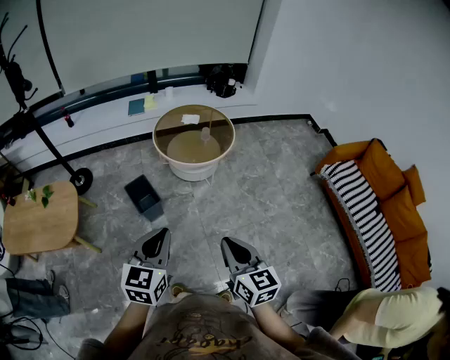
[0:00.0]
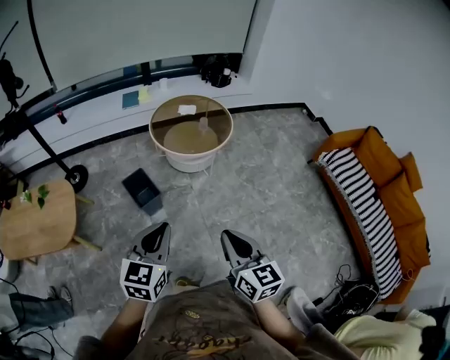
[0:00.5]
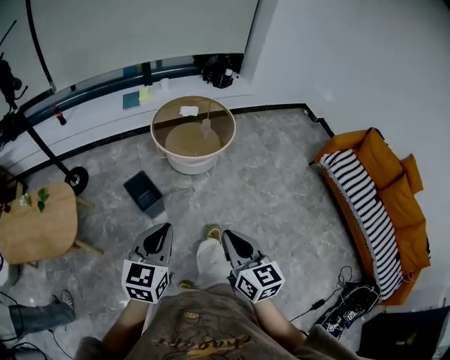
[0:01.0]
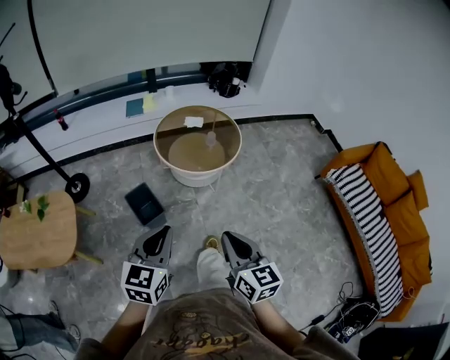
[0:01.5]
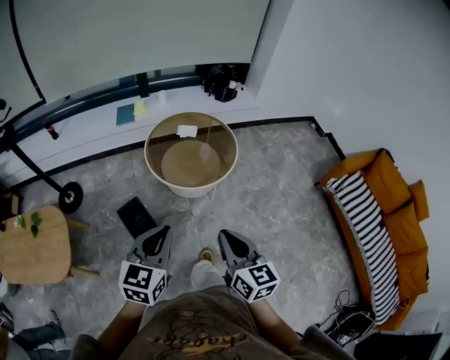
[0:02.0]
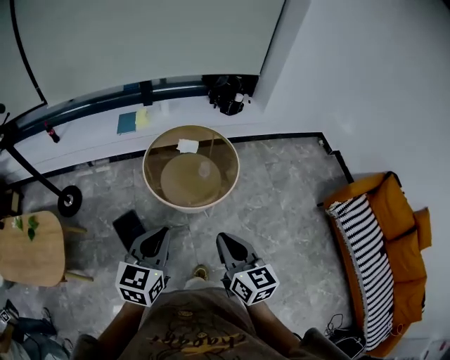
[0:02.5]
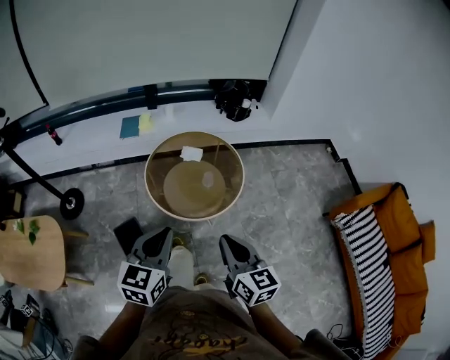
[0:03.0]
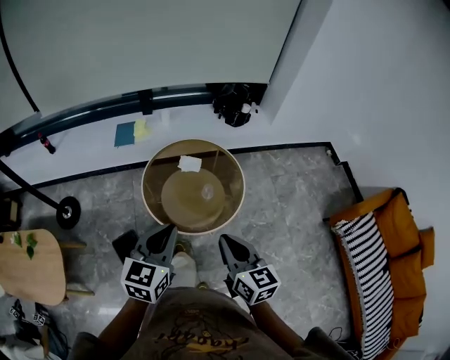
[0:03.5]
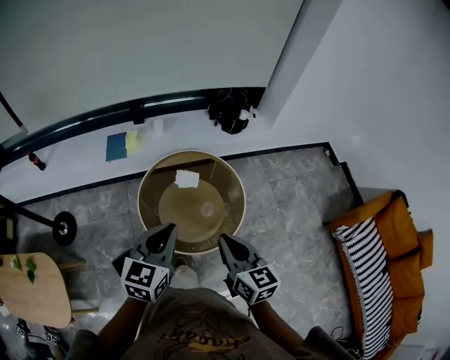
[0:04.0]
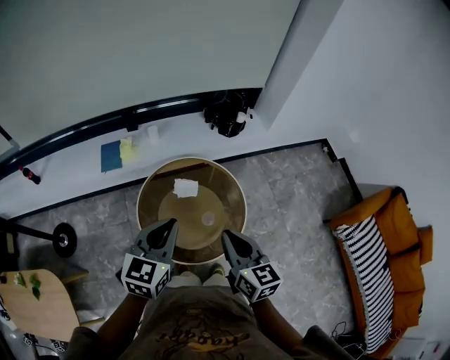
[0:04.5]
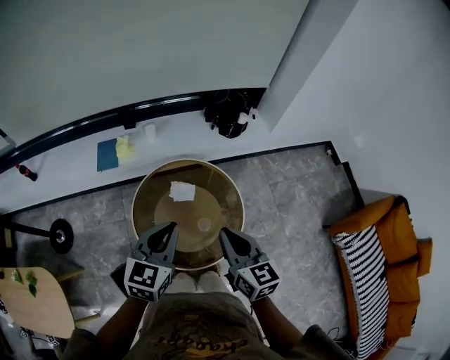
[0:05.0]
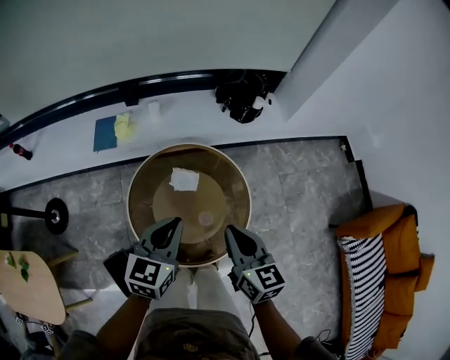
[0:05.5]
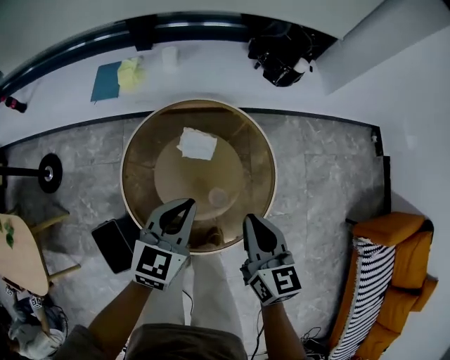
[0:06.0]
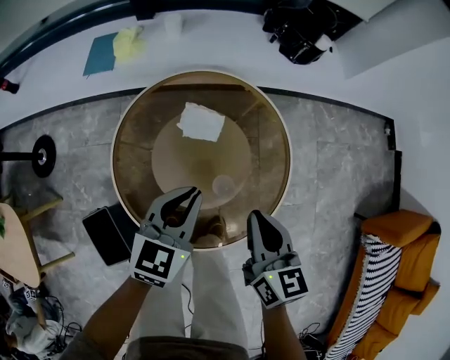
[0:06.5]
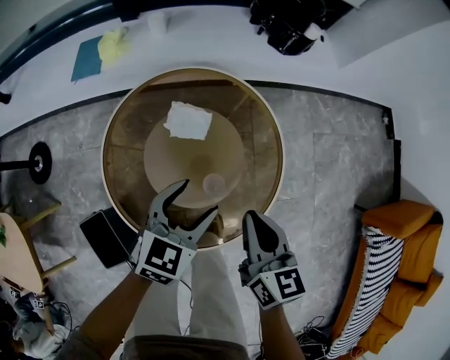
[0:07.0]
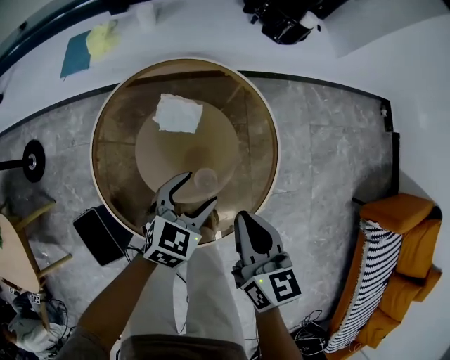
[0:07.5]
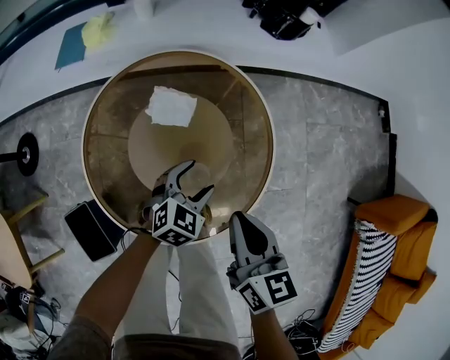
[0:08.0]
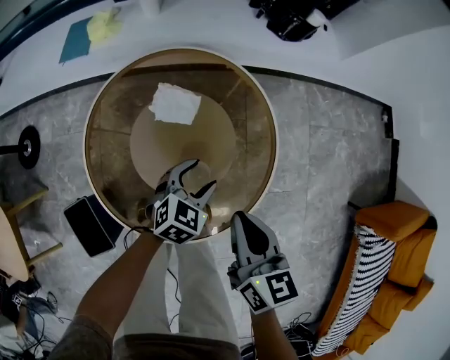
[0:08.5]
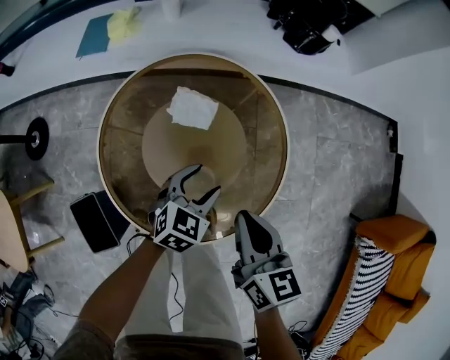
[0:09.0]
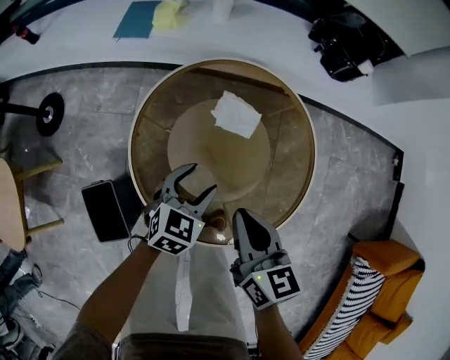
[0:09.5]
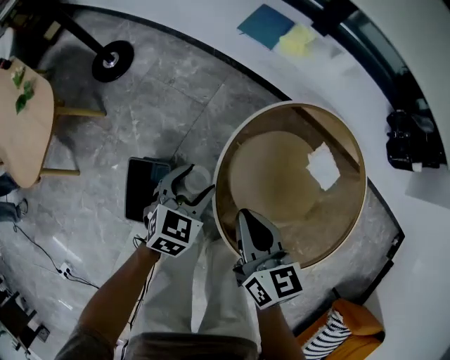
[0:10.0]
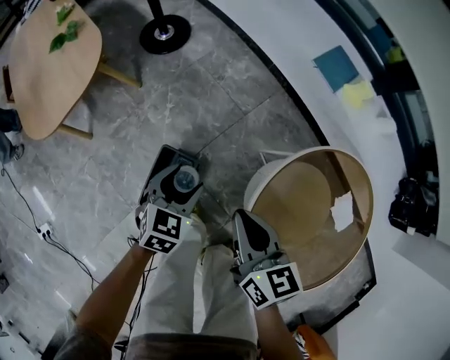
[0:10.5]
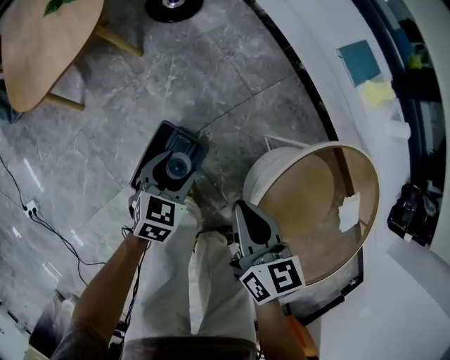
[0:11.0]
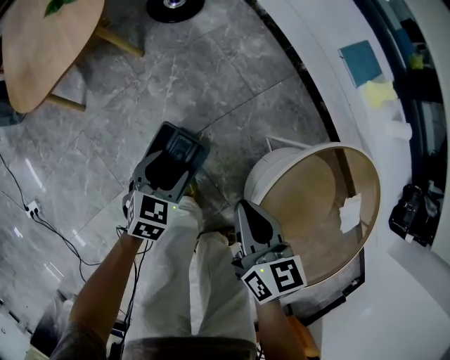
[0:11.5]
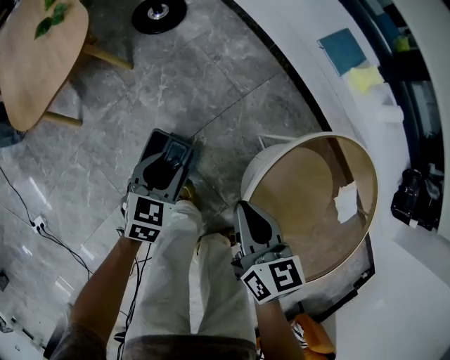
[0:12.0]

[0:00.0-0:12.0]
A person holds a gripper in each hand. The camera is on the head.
0:00.0 to 0:02.0: The grippers both shift forward by roughly 25 cm.
0:02.0 to 0:04.0: The grippers both shift forward by about 40 cm.
0:04.0 to 0:06.0: The right gripper moves forward and downward, some 25 cm. The left gripper is displaced downward and forward by roughly 30 cm.
0:06.0 to 0:08.0: The right gripper is displaced downward by some 10 cm. Meanwhile the left gripper moves downward and to the right, roughly 25 cm, swivels about 30 degrees, and opens up.
0:08.0 to 0:10.0: The left gripper shifts by approximately 40 cm, and changes its angle by some 50 degrees. The right gripper ends up some 35 cm from where it was, and rotates some 40 degrees.
0:10.0 to 0:12.0: The right gripper heads to the left and downward, covering approximately 15 cm. The left gripper goes some 20 cm to the left, and turns by approximately 30 degrees.

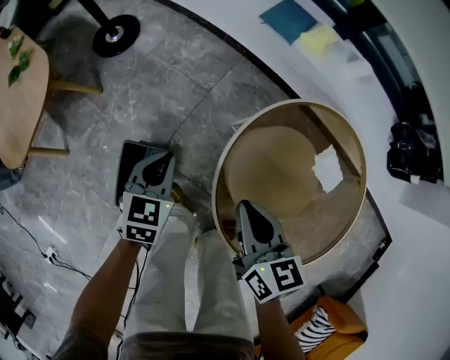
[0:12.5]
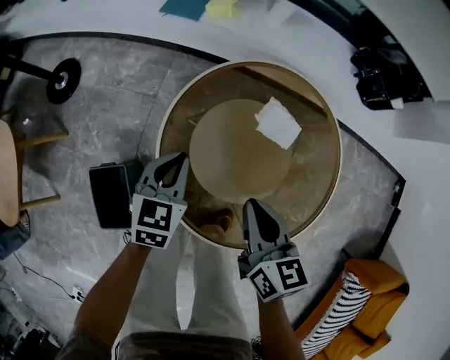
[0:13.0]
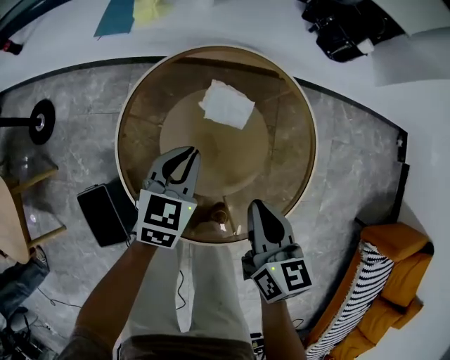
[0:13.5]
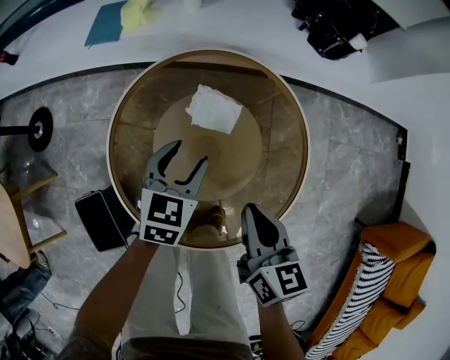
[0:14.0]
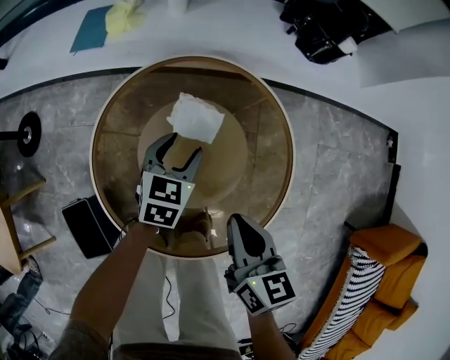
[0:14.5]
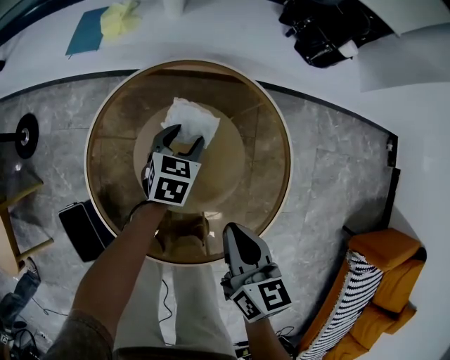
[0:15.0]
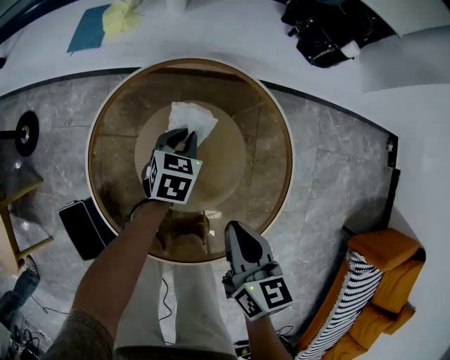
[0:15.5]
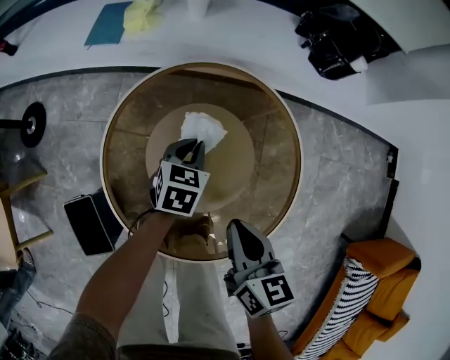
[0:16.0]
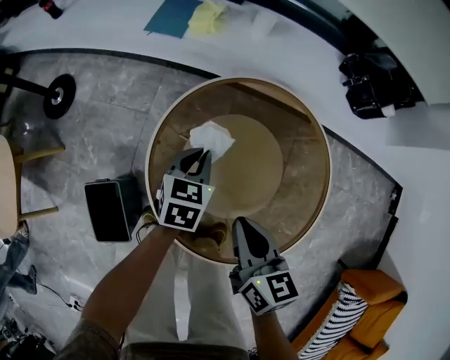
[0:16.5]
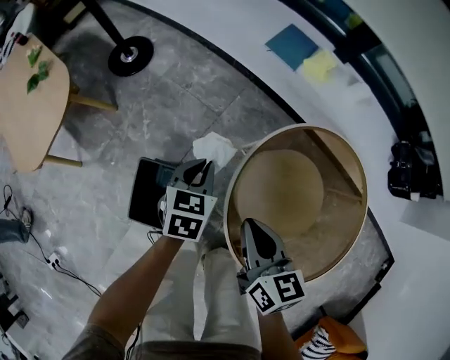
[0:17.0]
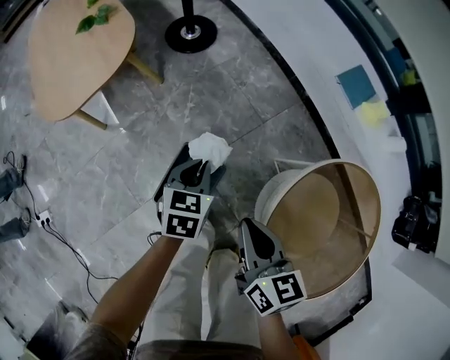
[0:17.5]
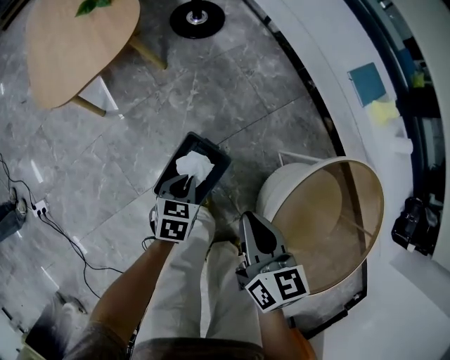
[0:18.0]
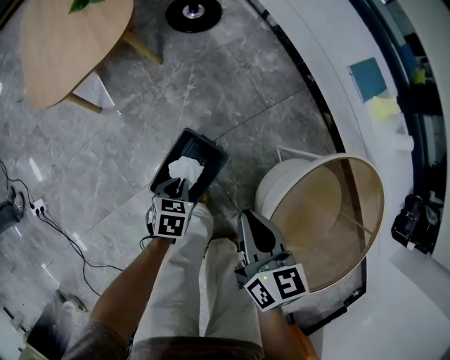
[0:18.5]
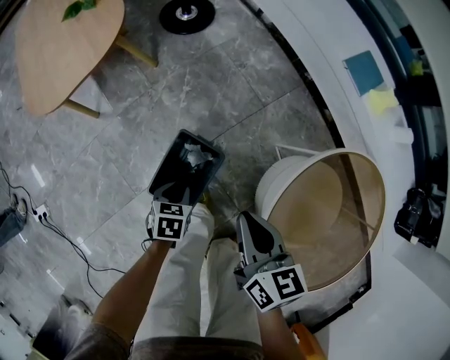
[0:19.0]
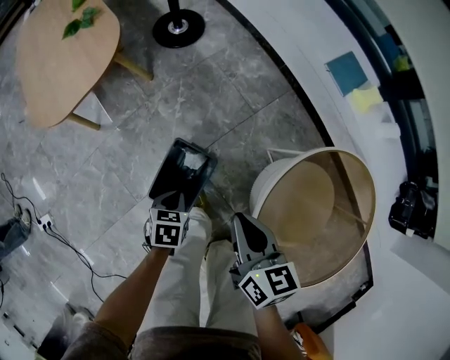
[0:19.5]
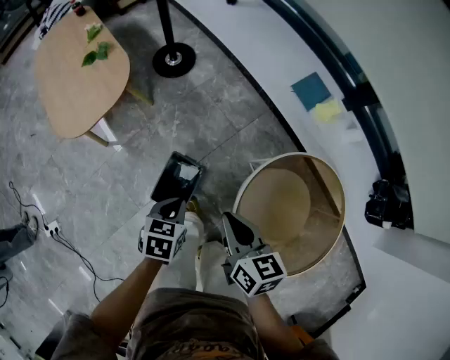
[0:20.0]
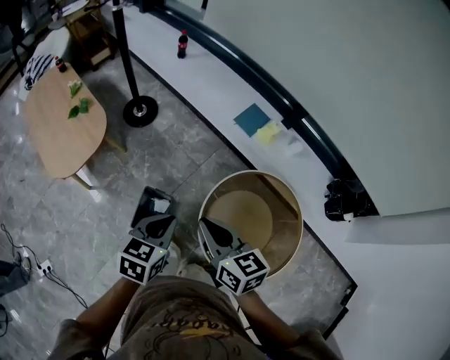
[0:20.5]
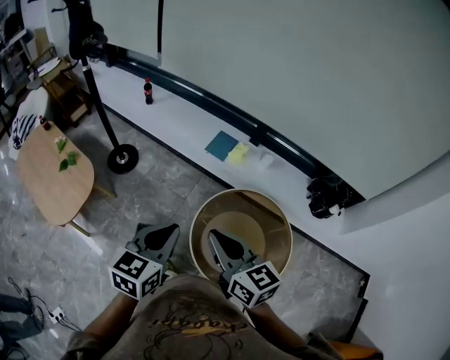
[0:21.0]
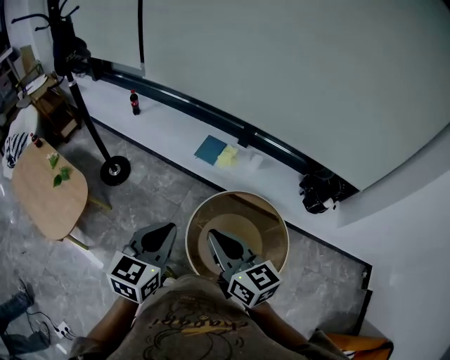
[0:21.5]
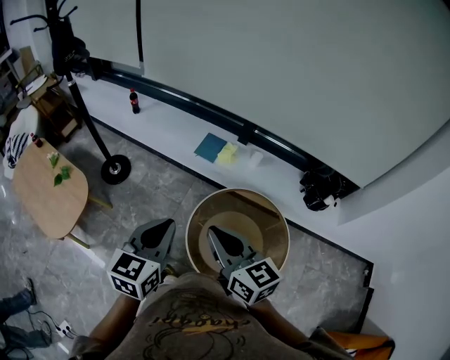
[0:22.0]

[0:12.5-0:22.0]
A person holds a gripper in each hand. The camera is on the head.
0:12.5 to 0:14.5: The left gripper shifts by some 40 cm, rotates approximately 30 degrees, and opens. Meanwhile the right gripper moves some 35 cm, and rotates some 40 degrees.
0:14.5 to 0:16.5: Both grippers travel together to the left, approximately 15 cm. The left gripper closes.
0:16.5 to 0:18.0: The left gripper shifts by roughly 50 cm, and rotates approximately 50 degrees. Meanwhile the right gripper moves roughly 35 cm, and swivels some 40 degrees.
0:18.0 to 0:20.0: The left gripper is displaced upward by roughly 25 cm, while the right gripper heads upward, covering about 15 cm.
0:20.0 to 0:22.0: Both grippers travel together upward and to the right, roughly 40 cm. The right gripper swivels some 30 degrees; the left gripper tilts its fingers about 40 degrees upward.

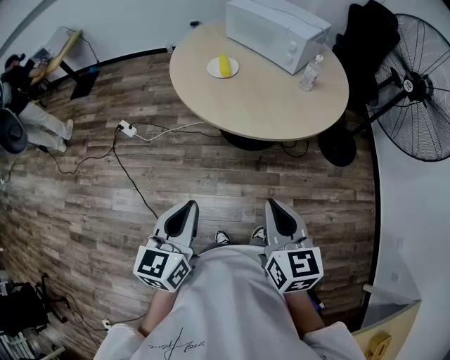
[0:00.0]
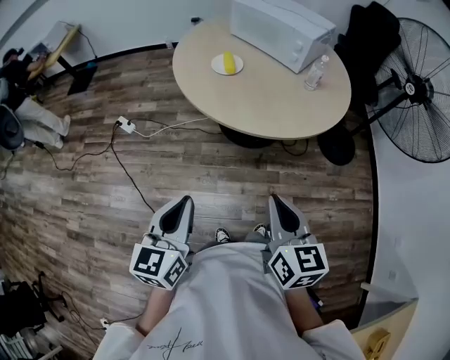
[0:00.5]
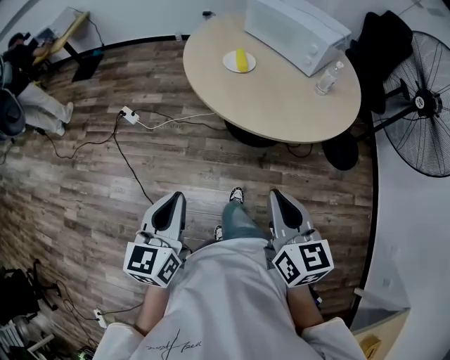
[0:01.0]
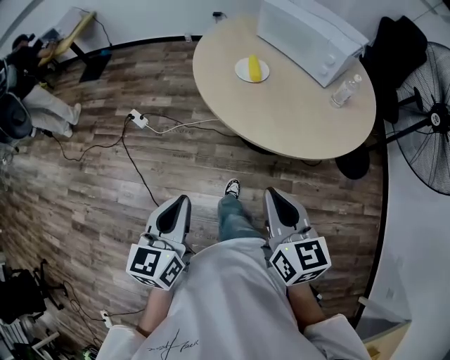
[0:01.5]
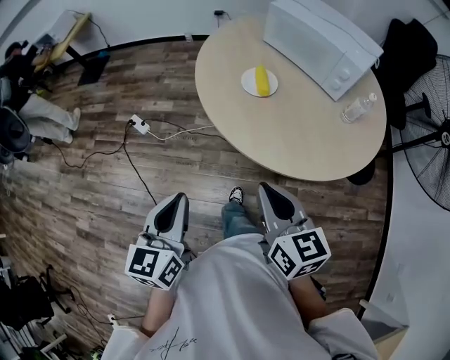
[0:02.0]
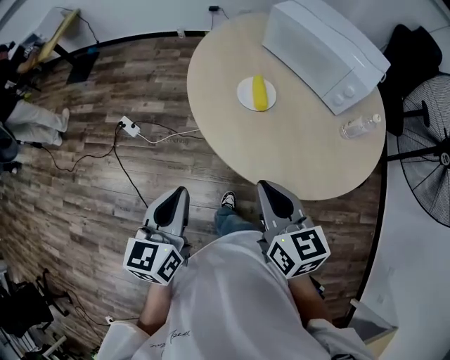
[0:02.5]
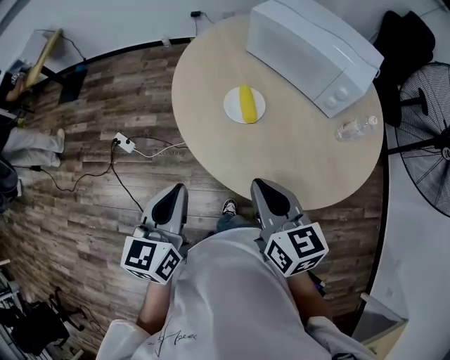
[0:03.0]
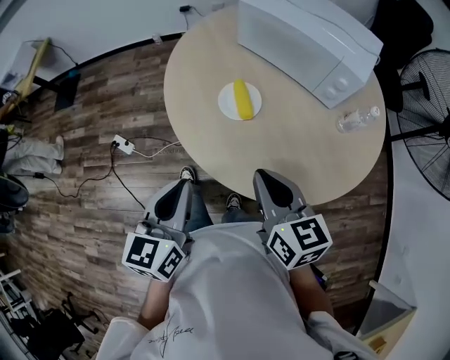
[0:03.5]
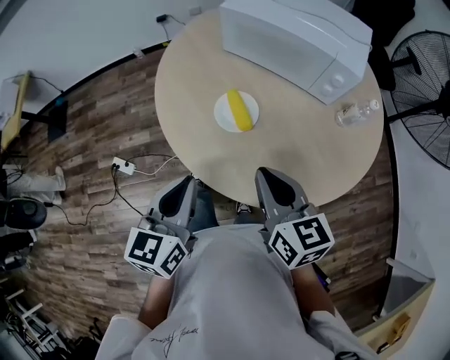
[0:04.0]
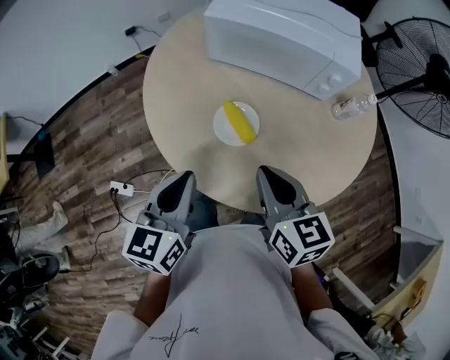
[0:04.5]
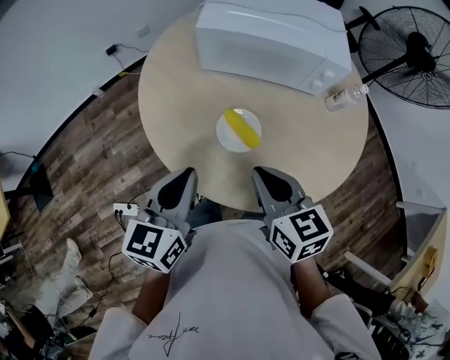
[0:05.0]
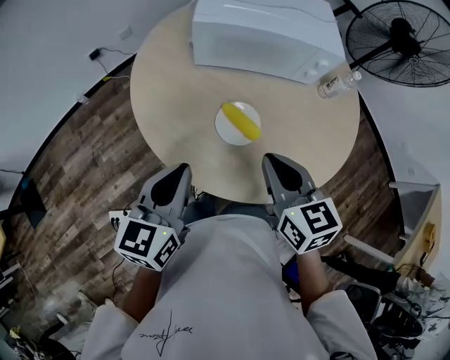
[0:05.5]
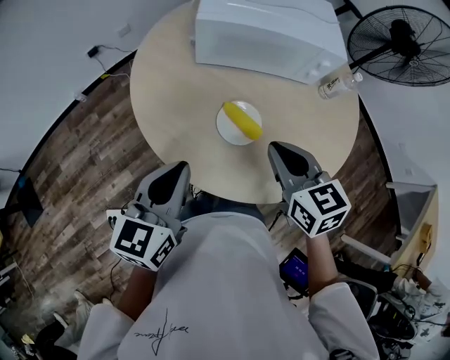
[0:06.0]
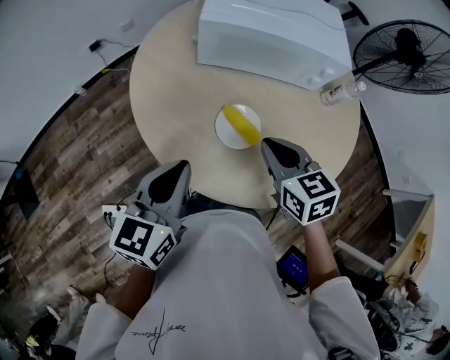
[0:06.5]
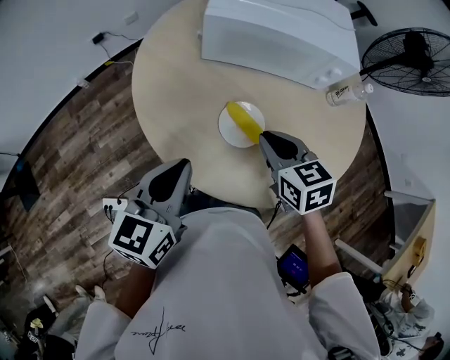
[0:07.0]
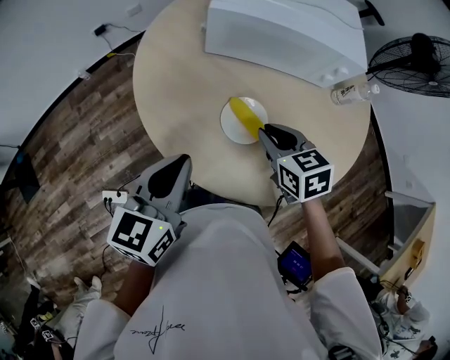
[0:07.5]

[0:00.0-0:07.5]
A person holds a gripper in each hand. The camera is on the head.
0:00.0 to 0:02.0: The two grippers go roughly 25 cm forward and to the left.
0:02.0 to 0:04.0: The two grippers go roughly 25 cm forward. The left gripper turns by approximately 20 degrees.
0:04.0 to 0:05.5: The left gripper moves some 20 cm, and changes its angle by approximately 30 degrees. Meanwhile the right gripper ends up about 15 cm from where it was, and changes its angle by approximately 20 degrees.
0:05.5 to 0:07.5: The right gripper moves downward and forward, roughly 15 cm, and changes its angle by some 20 degrees.
